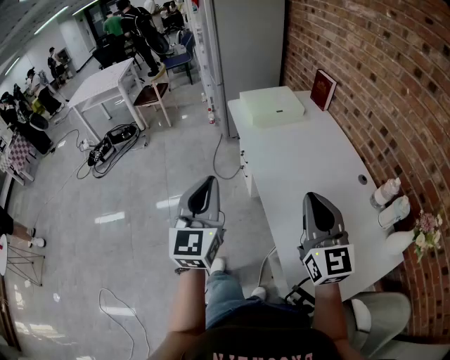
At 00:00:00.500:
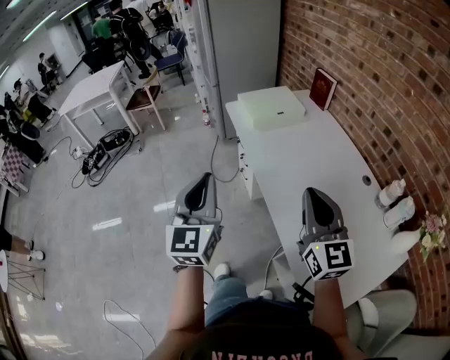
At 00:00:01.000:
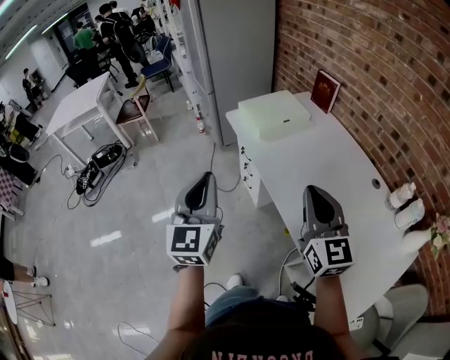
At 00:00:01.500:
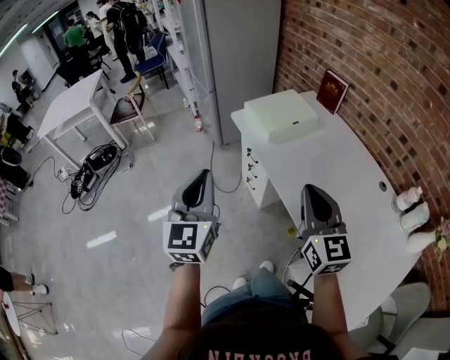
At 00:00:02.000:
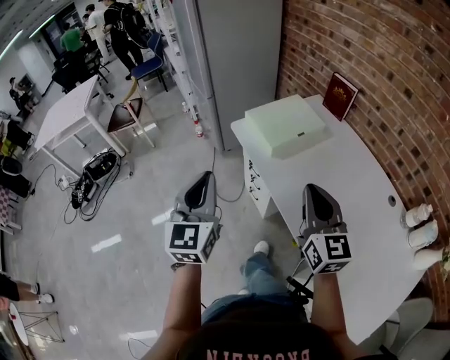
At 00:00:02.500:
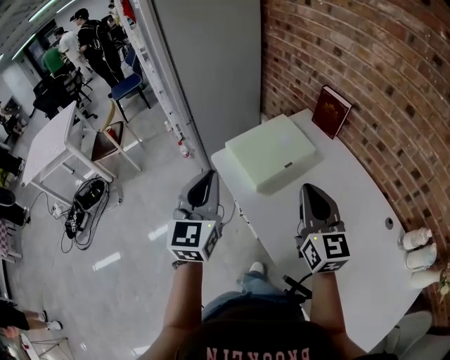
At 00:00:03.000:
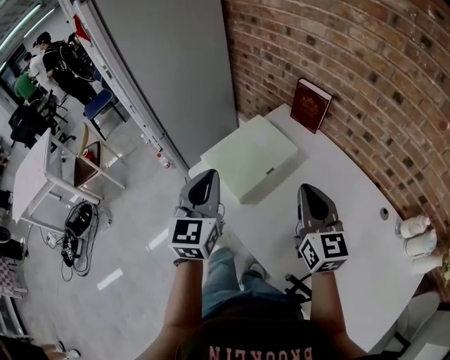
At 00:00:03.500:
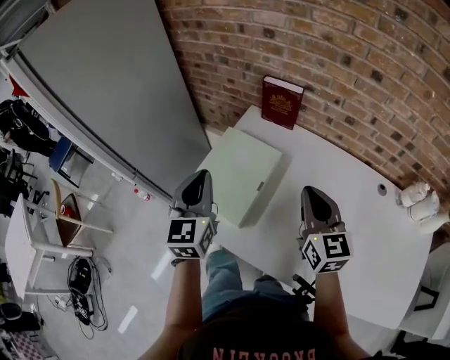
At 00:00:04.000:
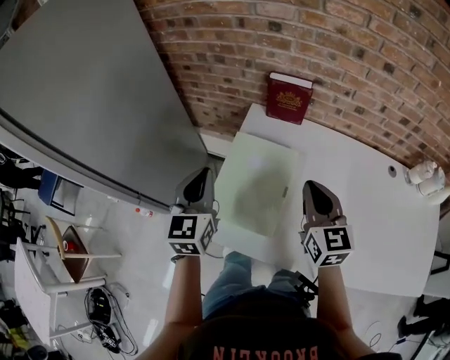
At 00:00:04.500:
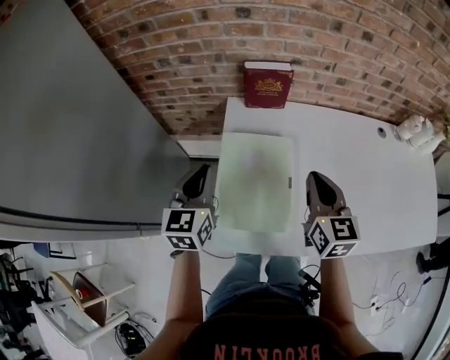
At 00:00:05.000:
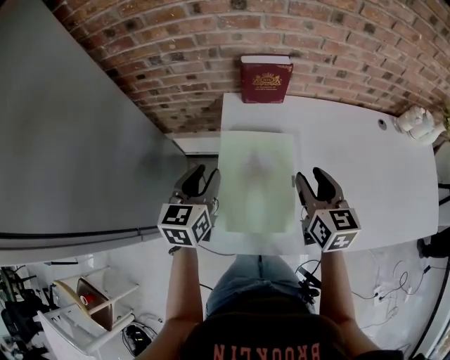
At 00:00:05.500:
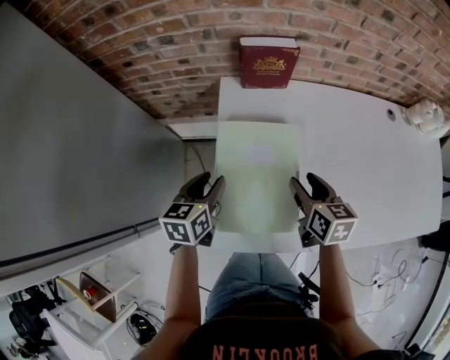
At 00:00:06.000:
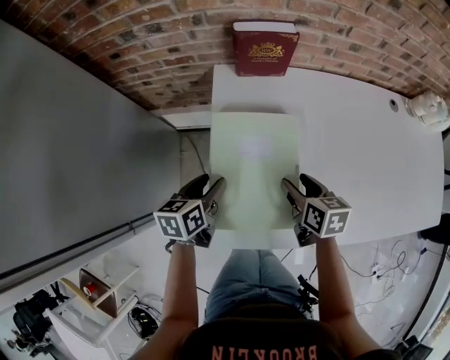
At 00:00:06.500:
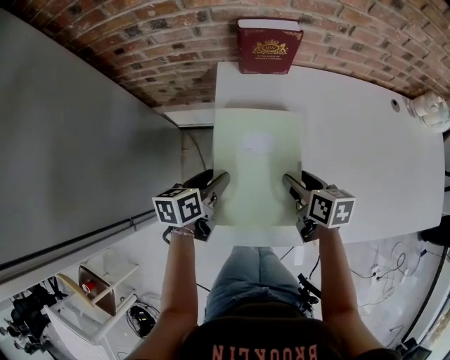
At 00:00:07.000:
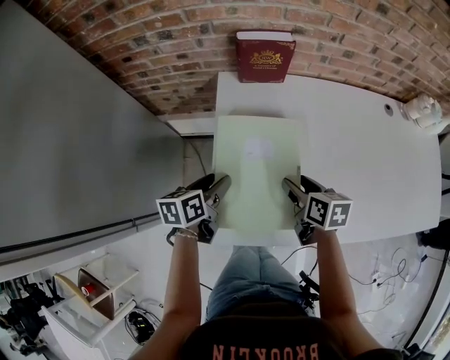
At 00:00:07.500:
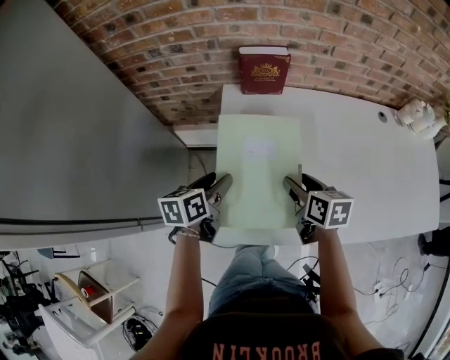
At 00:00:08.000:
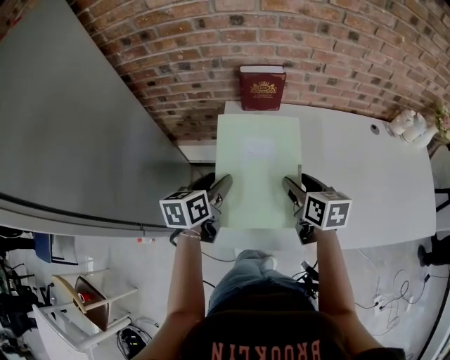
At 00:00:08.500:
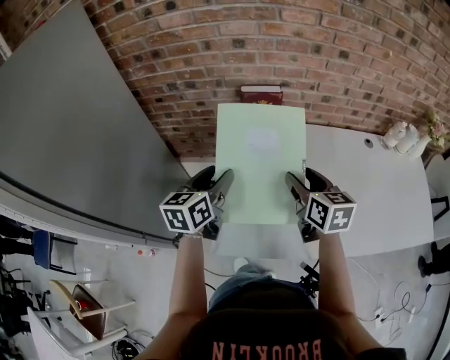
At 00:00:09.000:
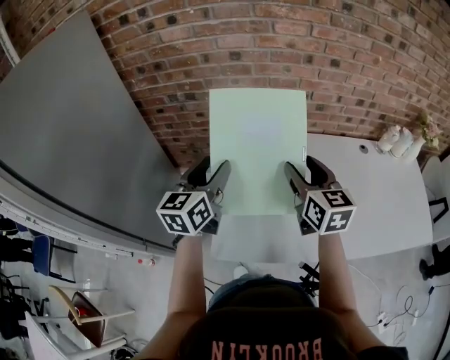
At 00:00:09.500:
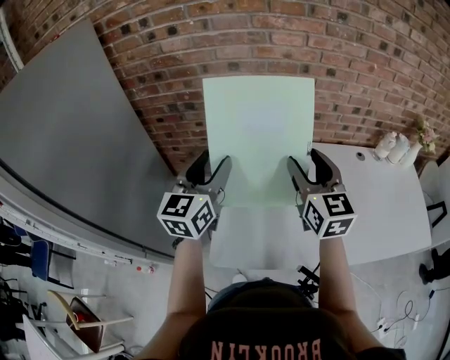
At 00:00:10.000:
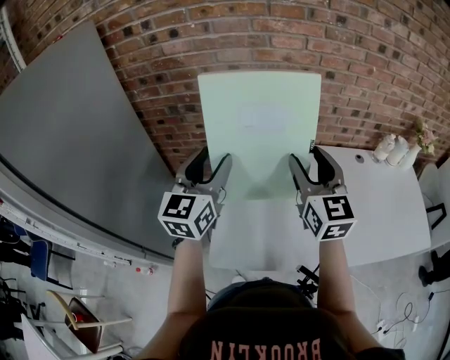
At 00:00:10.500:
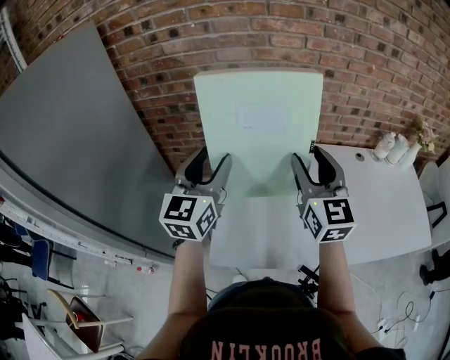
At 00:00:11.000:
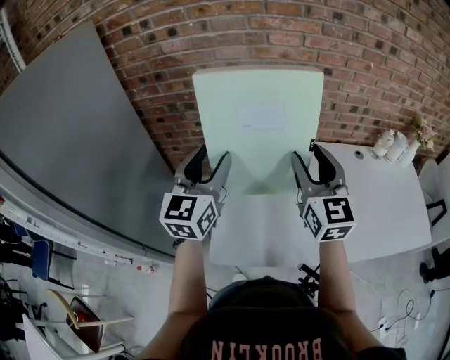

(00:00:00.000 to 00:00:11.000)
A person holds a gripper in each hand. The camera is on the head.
00:00:00.000 - 00:00:02.000: The two grippers go roughly 35 cm forward and to the left.
00:00:02.000 - 00:00:03.500: The right gripper shifts by about 30 cm, and turns by roughly 30 degrees; the left gripper changes place by about 40 cm, and swivels some 30 degrees.
00:00:03.500 - 00:00:05.500: The two grippers go some 15 cm downward. The right gripper rotates roughly 40 degrees, and opens up, while the left gripper rotates some 50 degrees, and opens up.
00:00:07.500 - 00:00:09.000: The grippers both shift upward by some 20 cm. The left gripper swivels some 40 degrees, while the right gripper turns by about 40 degrees.
00:00:09.000 - 00:00:11.000: The grippers both shift upward by some 10 cm. The right gripper turns by about 20 degrees. The left gripper changes its angle by about 20 degrees.

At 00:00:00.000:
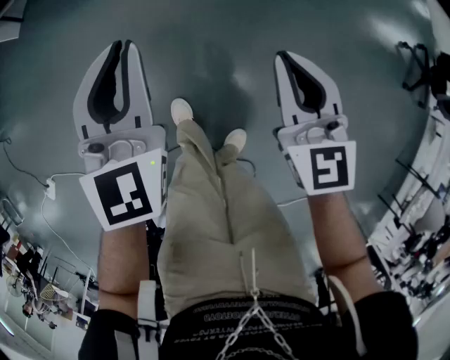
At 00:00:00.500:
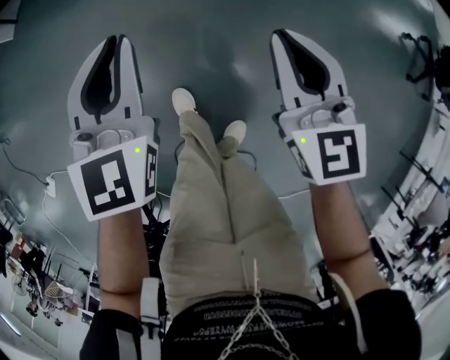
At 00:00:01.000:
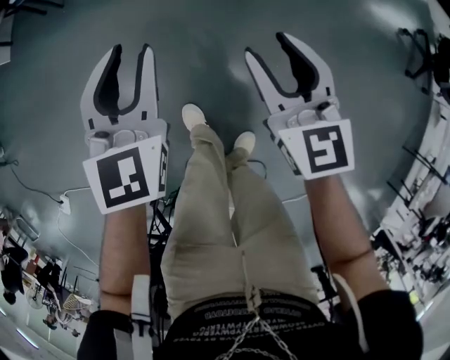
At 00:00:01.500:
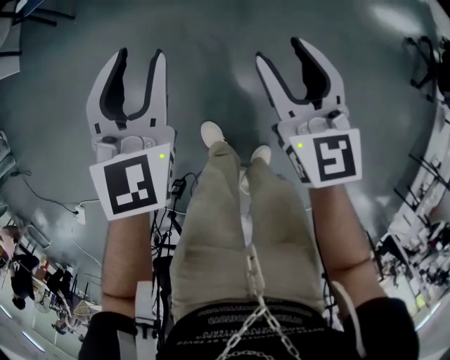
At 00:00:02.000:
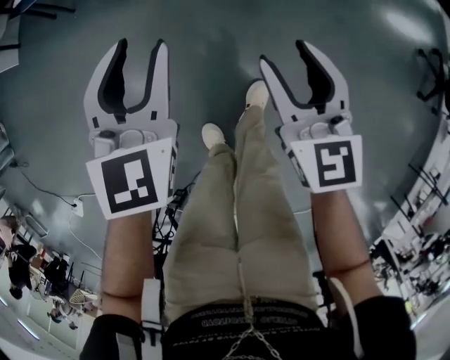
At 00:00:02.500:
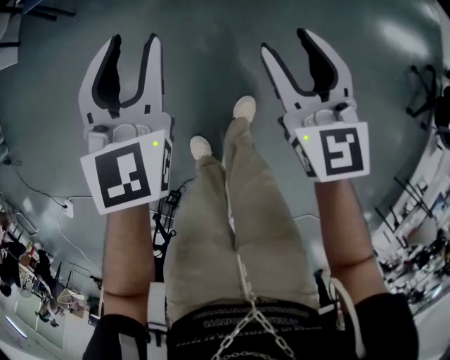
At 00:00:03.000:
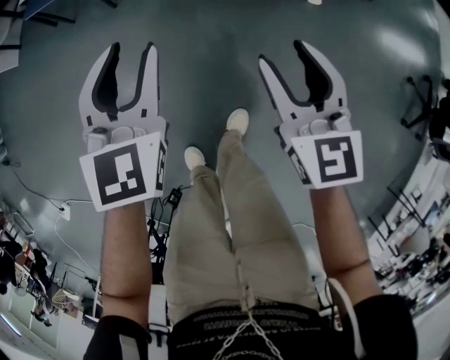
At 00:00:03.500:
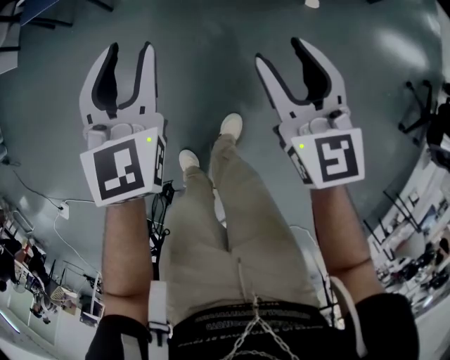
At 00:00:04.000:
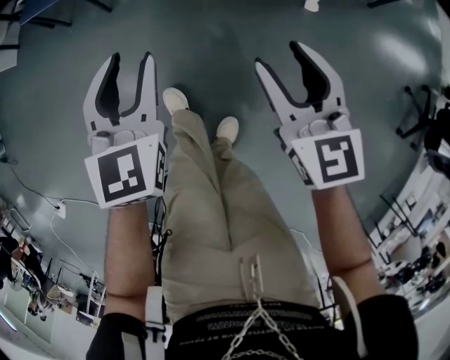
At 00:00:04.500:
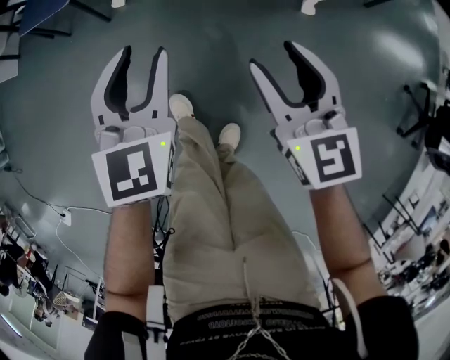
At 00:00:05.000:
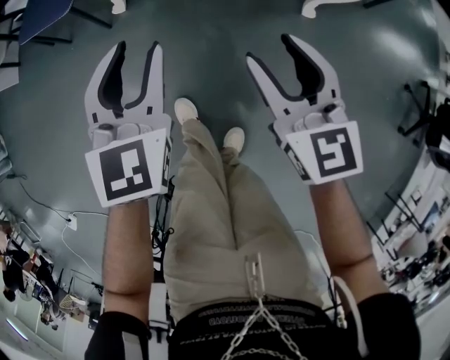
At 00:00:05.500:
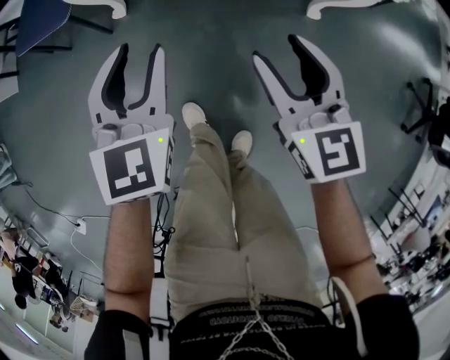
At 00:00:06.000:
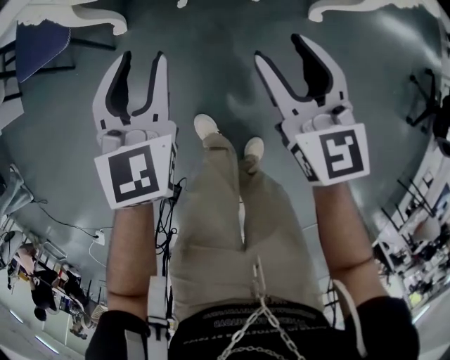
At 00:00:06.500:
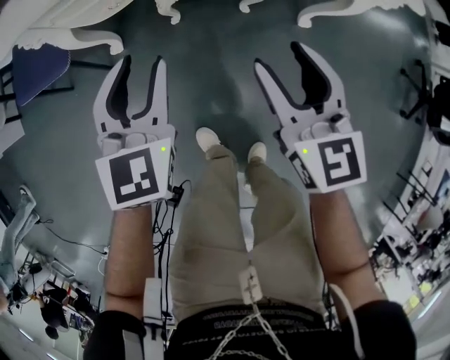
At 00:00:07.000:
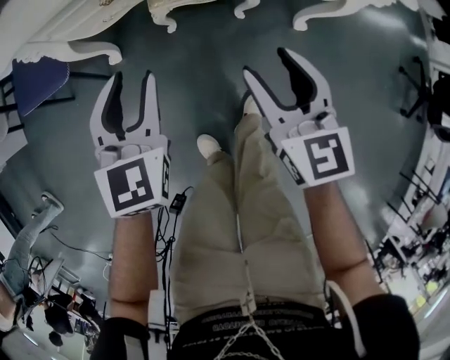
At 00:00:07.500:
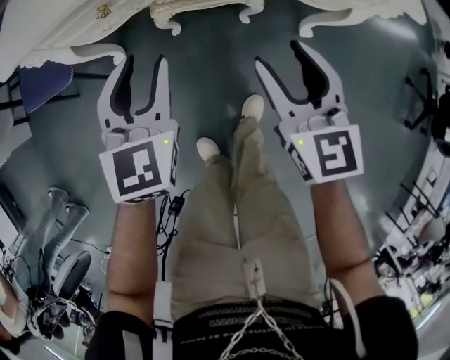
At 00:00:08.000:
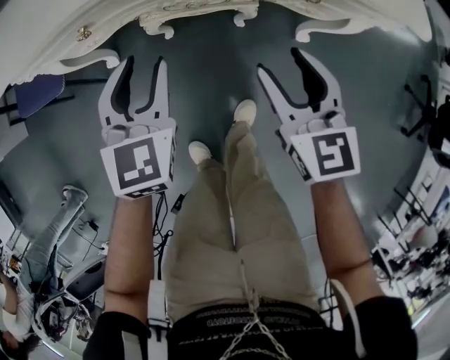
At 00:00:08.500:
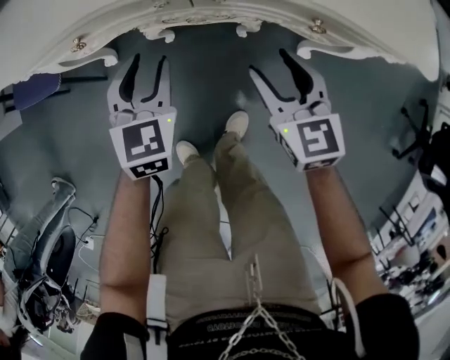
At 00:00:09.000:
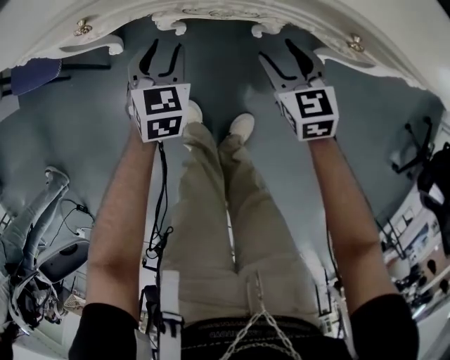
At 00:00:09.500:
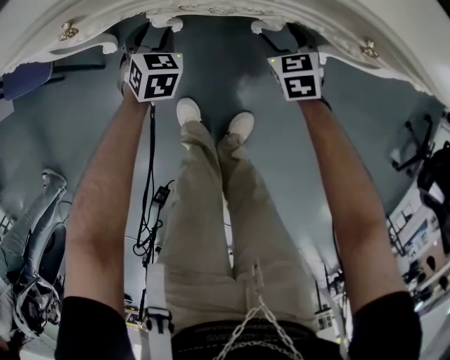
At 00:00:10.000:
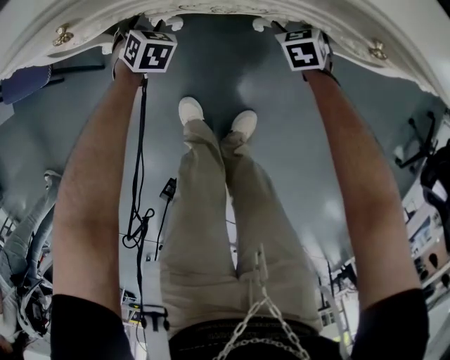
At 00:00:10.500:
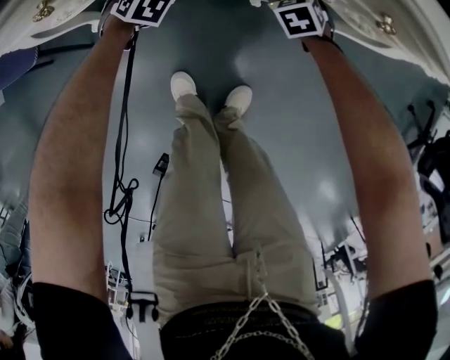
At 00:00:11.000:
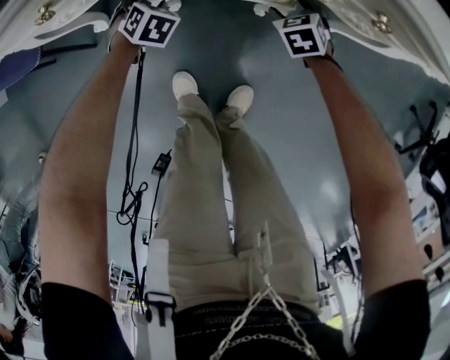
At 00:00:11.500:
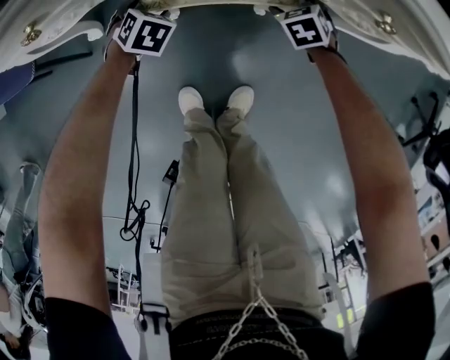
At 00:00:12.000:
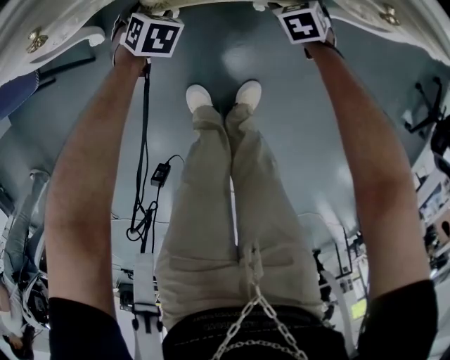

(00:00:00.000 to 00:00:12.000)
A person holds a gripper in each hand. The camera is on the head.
00:00:00.000 - 00:00:02.000: The two grippers go about 15 cm forward. The right gripper opens up. The left gripper opens up.
00:00:02.000 - 00:00:04.000: Both grippers travel together forward and to the right, some 15 cm.
00:00:04.000 - 00:00:06.000: Both grippers travel together forward, some 15 cm.
00:00:06.000 - 00:00:08.000: Both grippers travel together forward and to the right, approximately 15 cm.
00:00:08.000 - 00:00:10.000: The grippers both shift downward and forward by some 35 cm. The right gripper tips its fingers downward by about 30 degrees, while the left gripper turns by approximately 30 degrees.
00:00:10.000 - 00:00:12.000: The right gripper moves about 5 cm, while the left gripper moves roughly 5 cm.

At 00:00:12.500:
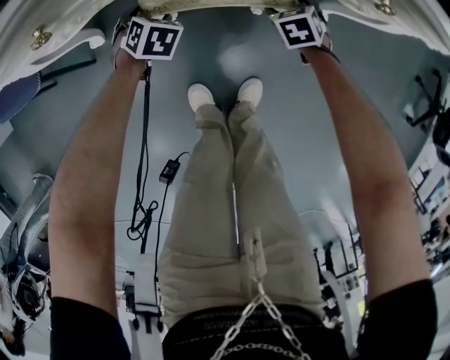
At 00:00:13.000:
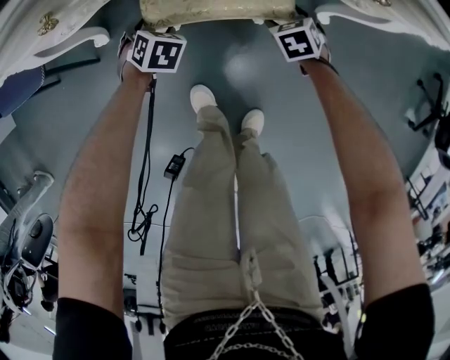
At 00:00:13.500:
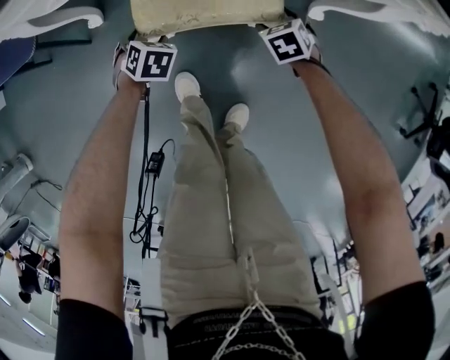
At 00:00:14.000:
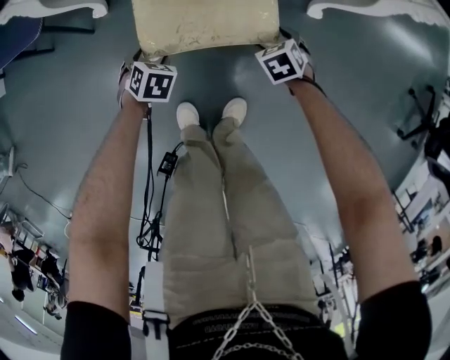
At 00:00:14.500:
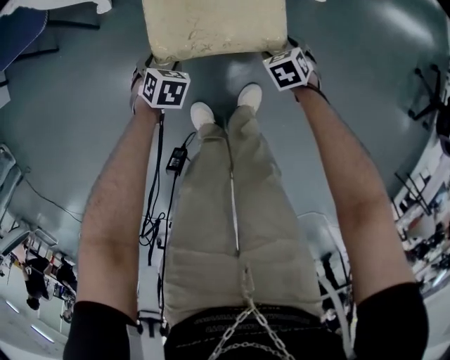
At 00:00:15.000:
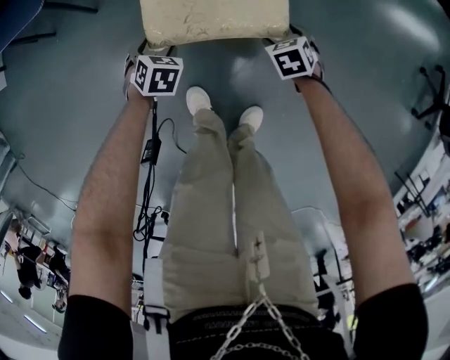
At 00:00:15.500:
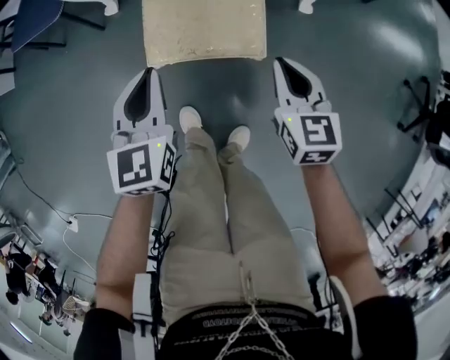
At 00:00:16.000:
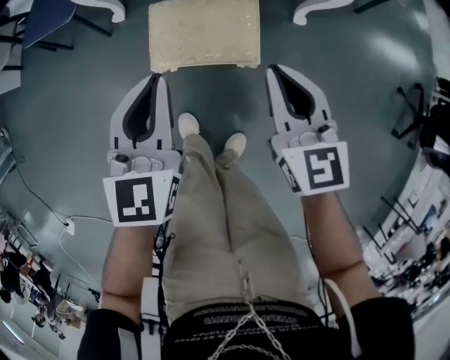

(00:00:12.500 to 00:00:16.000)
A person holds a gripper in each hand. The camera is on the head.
00:00:12.500 - 00:00:14.500: The left gripper changes place by some 30 cm. The right gripper changes place by about 30 cm.
00:00:14.500 - 00:00:16.000: The two grippers go approximately 40 cm upward. The left gripper tips its fingers upward by approximately 50 degrees, and closes up, while the right gripper tips its fingers upward by approximately 50 degrees, and closes.
